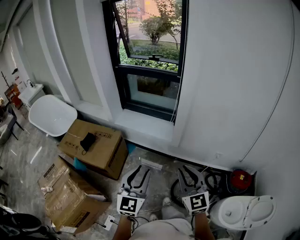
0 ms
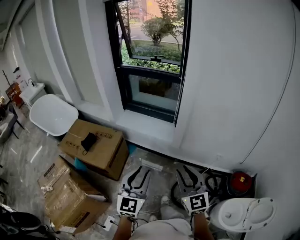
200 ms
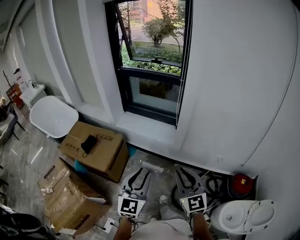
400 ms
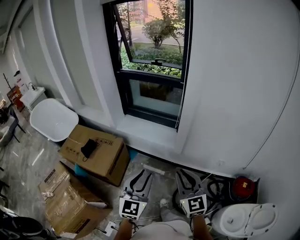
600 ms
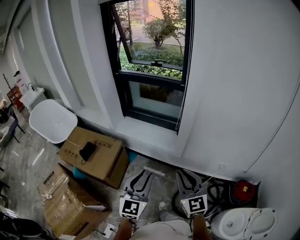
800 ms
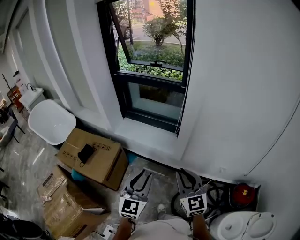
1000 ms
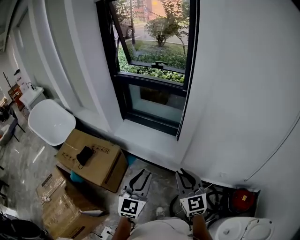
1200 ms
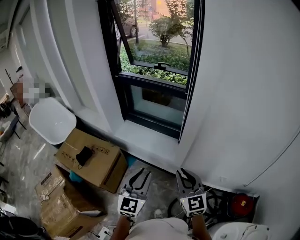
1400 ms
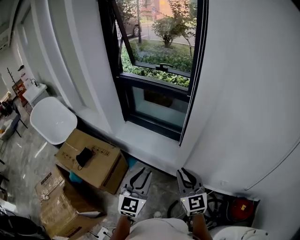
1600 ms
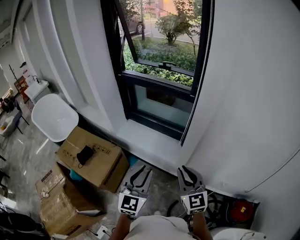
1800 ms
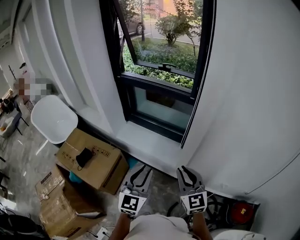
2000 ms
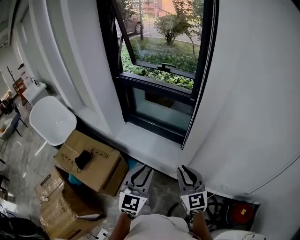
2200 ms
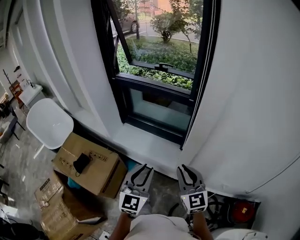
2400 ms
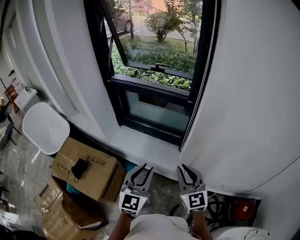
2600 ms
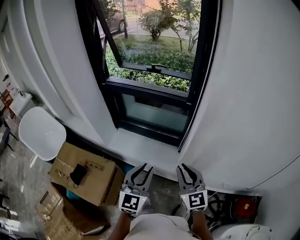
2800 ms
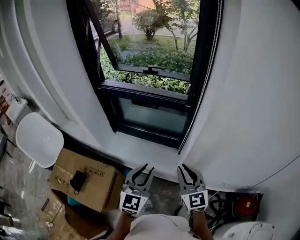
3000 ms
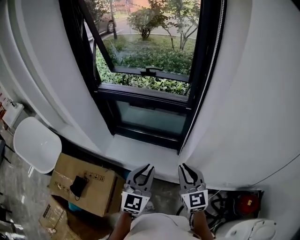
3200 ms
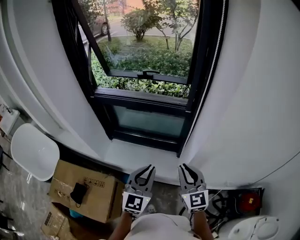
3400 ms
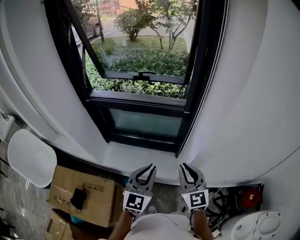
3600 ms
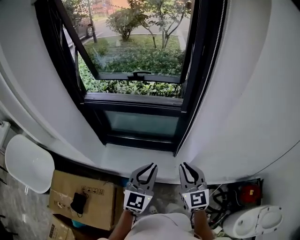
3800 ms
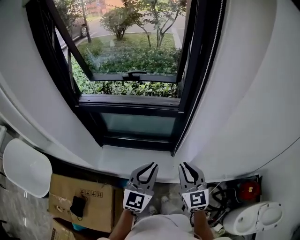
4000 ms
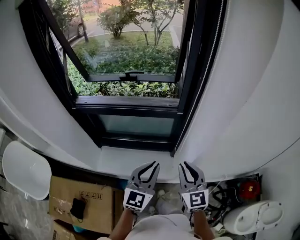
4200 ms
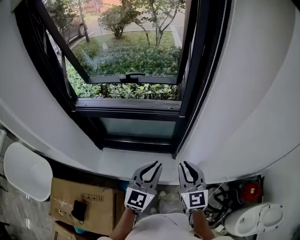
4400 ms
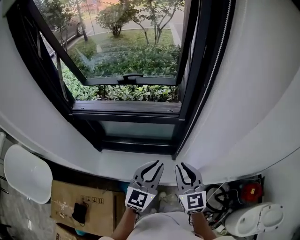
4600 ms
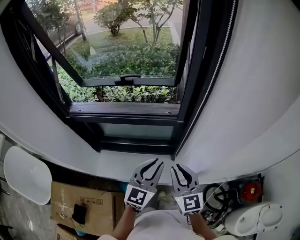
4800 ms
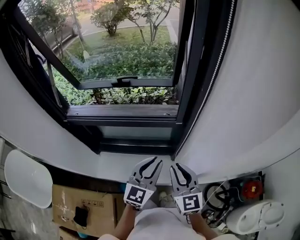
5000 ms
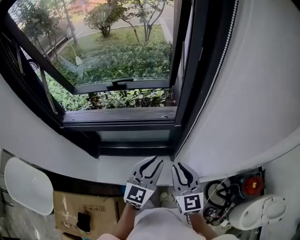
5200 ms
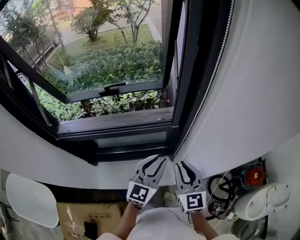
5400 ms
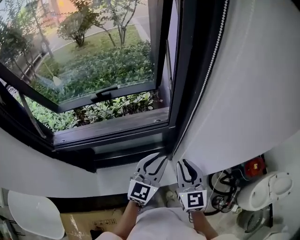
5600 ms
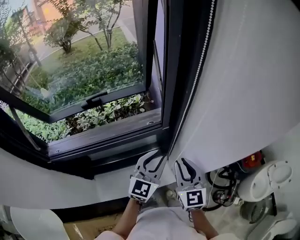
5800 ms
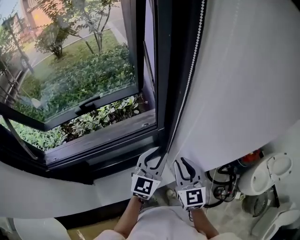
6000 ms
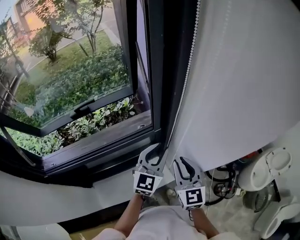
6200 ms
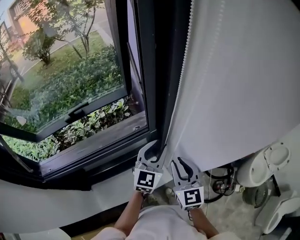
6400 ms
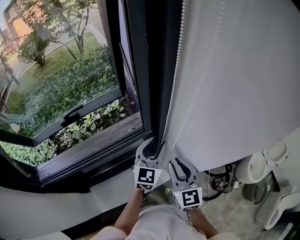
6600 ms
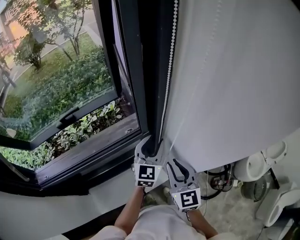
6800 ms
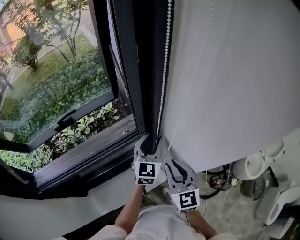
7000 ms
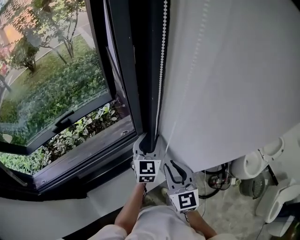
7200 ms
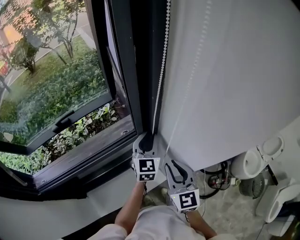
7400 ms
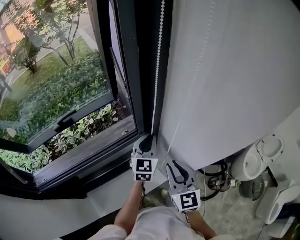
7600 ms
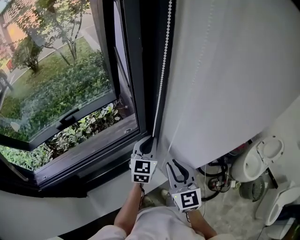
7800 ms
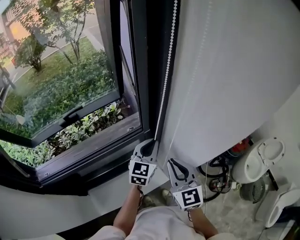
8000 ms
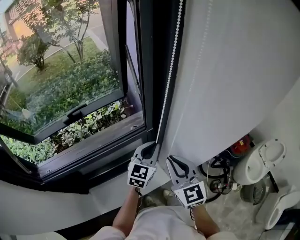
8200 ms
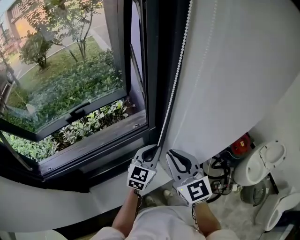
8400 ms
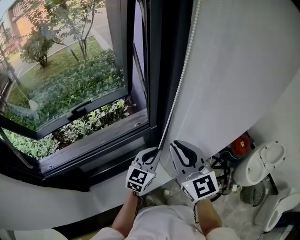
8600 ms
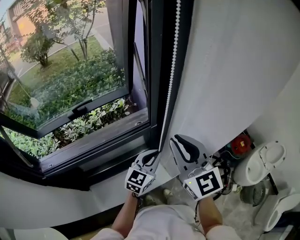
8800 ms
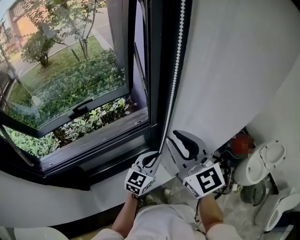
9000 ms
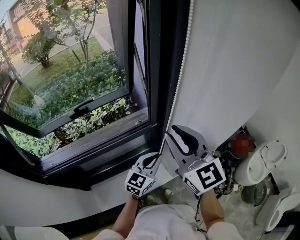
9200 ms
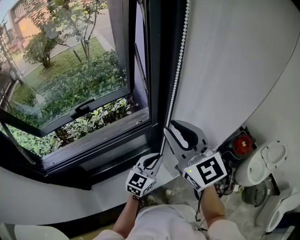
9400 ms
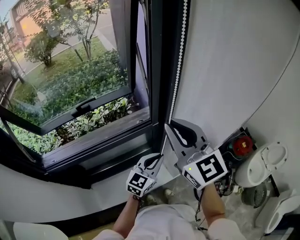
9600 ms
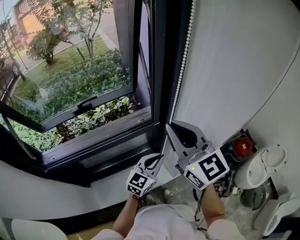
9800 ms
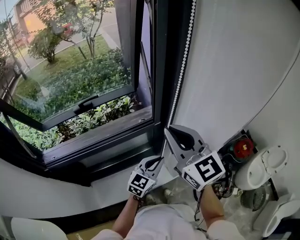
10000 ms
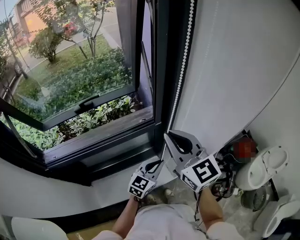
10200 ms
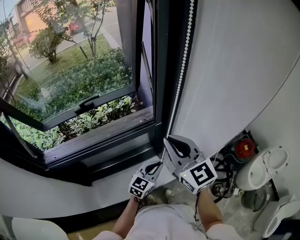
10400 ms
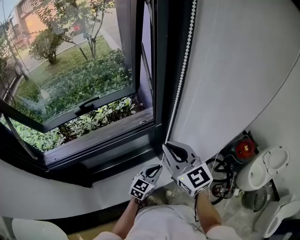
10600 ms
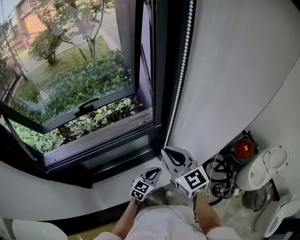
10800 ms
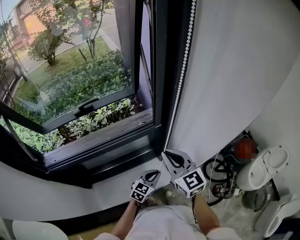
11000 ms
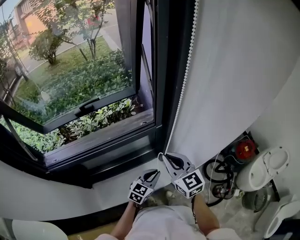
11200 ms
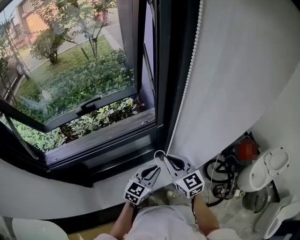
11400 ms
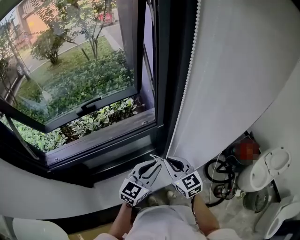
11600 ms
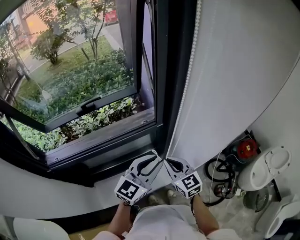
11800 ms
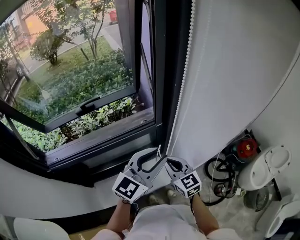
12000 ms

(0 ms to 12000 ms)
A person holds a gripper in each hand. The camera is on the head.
0 ms - 1600 ms: Both grippers travel together forward, some 25 cm.
1600 ms - 3000 ms: The grippers both shift forward by approximately 20 cm.
3000 ms - 4400 ms: Both grippers move forward, approximately 15 cm.
4400 ms - 6000 ms: The left gripper moves approximately 20 cm, and turns by approximately 30 degrees. Meanwhile the right gripper changes place by about 10 cm, and changes its angle by about 30 degrees.
6000 ms - 7600 ms: The left gripper travels forward by some 10 cm.
7600 ms - 9000 ms: The right gripper shifts approximately 15 cm upward, and swivels roughly 20 degrees. Meanwhile the left gripper is displaced backward by some 15 cm.
9000 ms - 10400 ms: The left gripper moves downward, about 10 cm, while the right gripper shifts by about 5 cm, and closes its fingers.
10400 ms - 12000 ms: The left gripper moves upward, about 20 cm, and opens its fingers; the right gripper moves downward, approximately 15 cm.

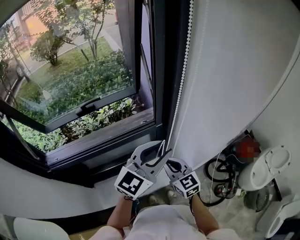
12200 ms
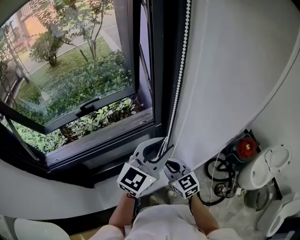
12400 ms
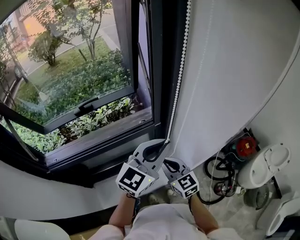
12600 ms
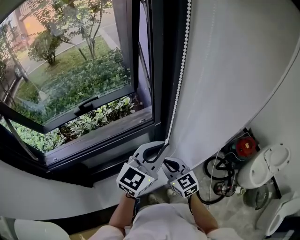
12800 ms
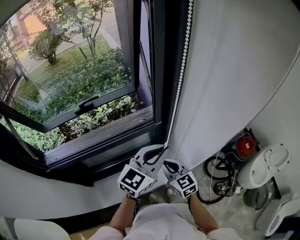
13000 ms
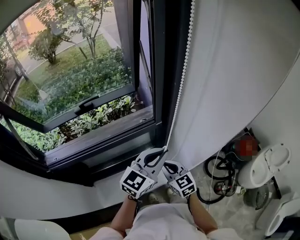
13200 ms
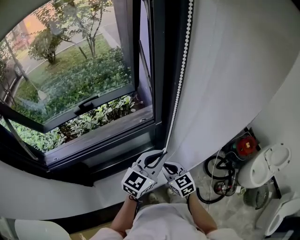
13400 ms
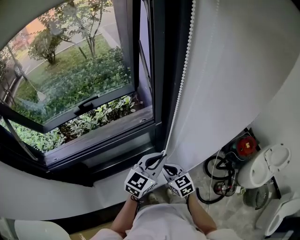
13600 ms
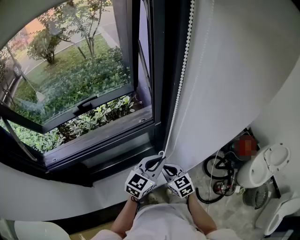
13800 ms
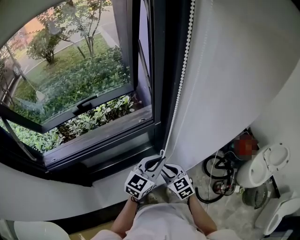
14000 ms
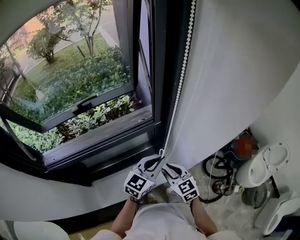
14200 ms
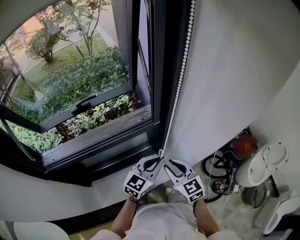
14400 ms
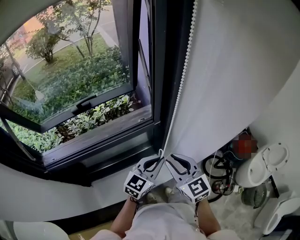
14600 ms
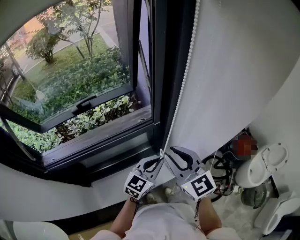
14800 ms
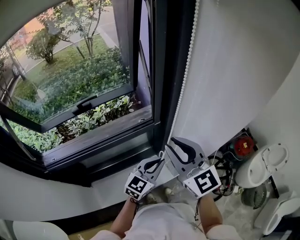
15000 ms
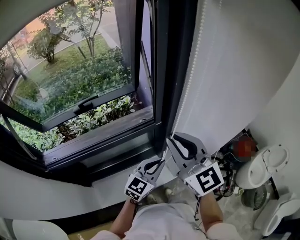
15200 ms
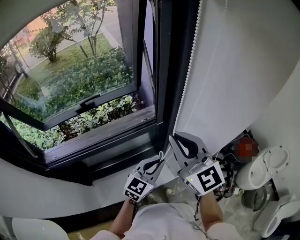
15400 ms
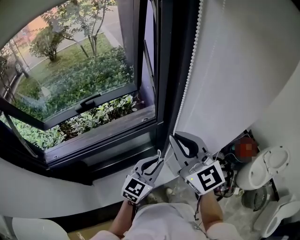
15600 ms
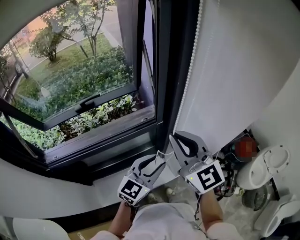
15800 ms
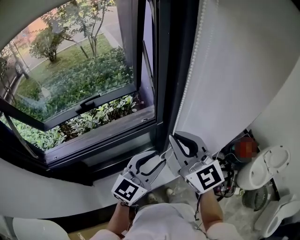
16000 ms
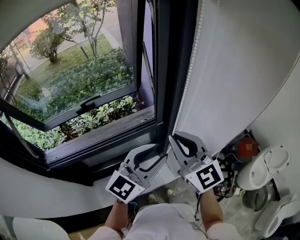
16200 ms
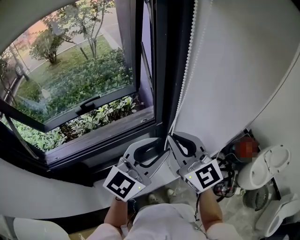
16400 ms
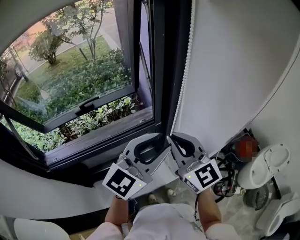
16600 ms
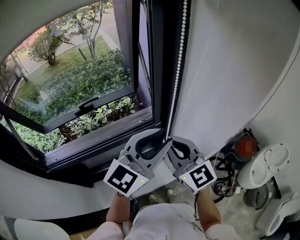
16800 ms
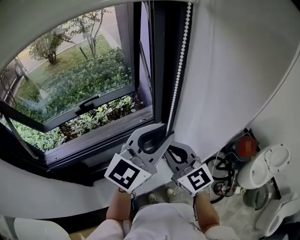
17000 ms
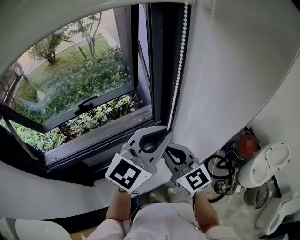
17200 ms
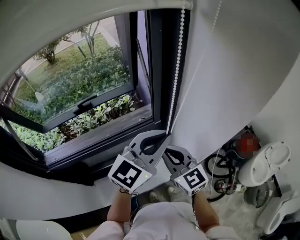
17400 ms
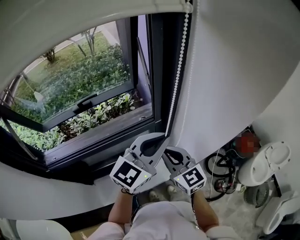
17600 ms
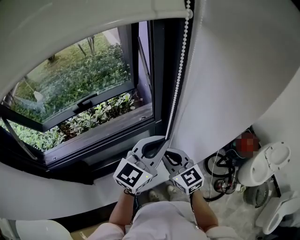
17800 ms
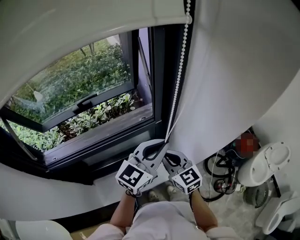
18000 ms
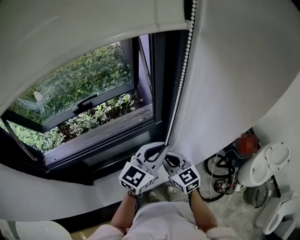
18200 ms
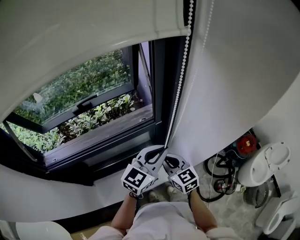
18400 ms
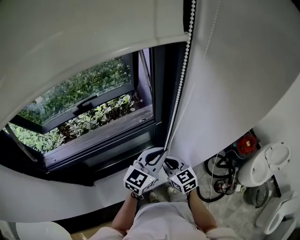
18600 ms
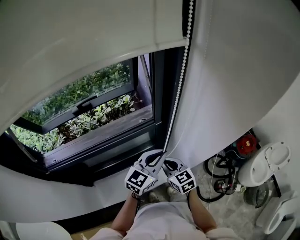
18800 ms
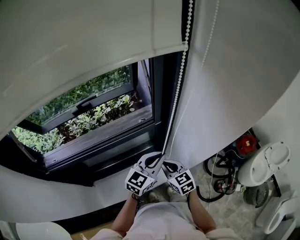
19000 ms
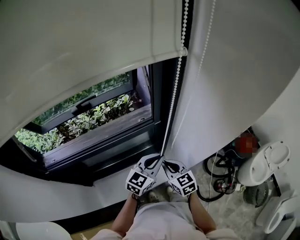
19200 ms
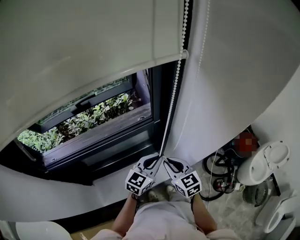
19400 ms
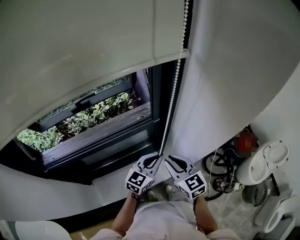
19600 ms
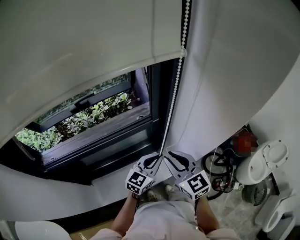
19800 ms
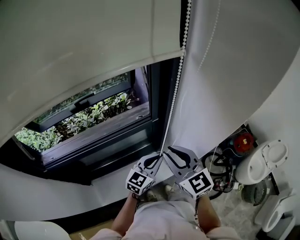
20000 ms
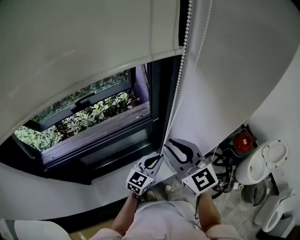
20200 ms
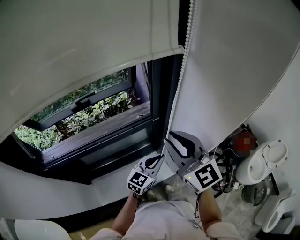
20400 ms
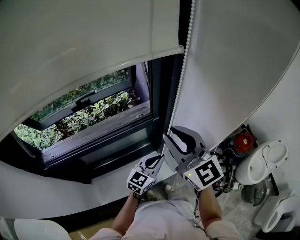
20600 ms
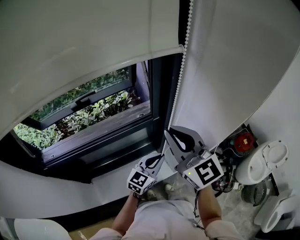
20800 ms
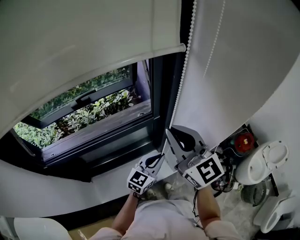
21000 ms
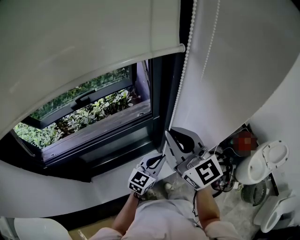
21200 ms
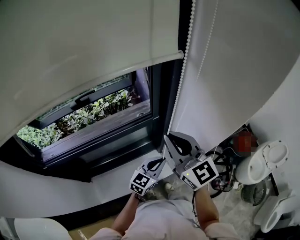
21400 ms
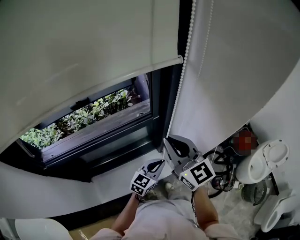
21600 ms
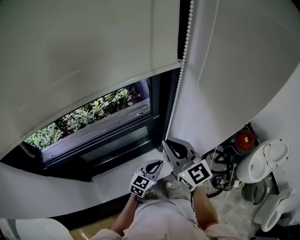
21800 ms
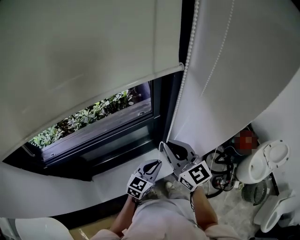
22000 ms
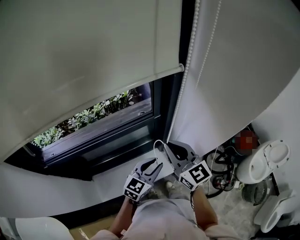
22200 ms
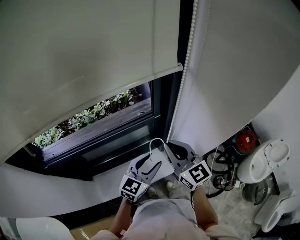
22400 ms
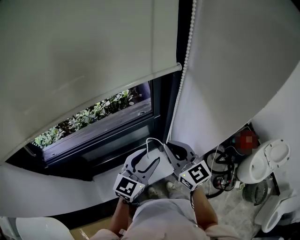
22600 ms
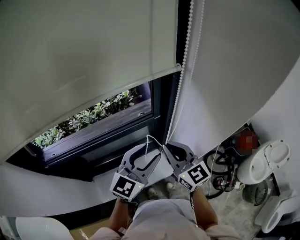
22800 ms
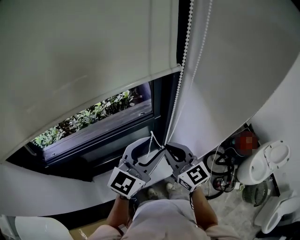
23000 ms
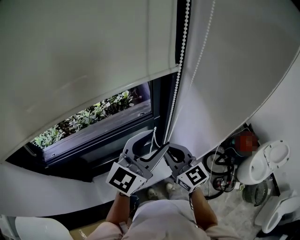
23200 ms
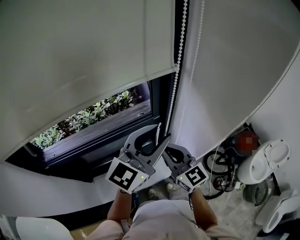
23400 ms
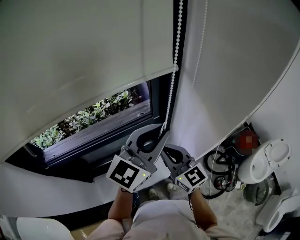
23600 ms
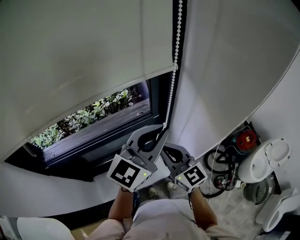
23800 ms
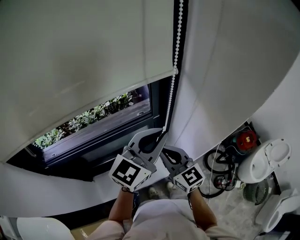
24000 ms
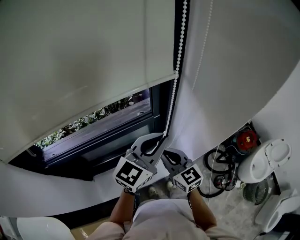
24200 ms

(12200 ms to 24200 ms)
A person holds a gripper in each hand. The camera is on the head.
12200 ms - 13800 ms: Both grippers travel together downward, roughly 10 cm. The left gripper closes.
13800 ms - 15200 ms: The right gripper goes about 30 cm upward, and angles its fingers upward, by approximately 30 degrees.
15200 ms - 16600 ms: The left gripper travels upward by some 20 cm, and opens up.
16600 ms - 18200 ms: The left gripper is displaced downward by roughly 10 cm, and closes its fingers; the right gripper moves downward, roughly 20 cm, and rotates some 20 degrees.
18200 ms - 19800 ms: The left gripper travels downward by about 15 cm. The right gripper moves upward, about 5 cm.
19800 ms - 21200 ms: The right gripper shifts approximately 15 cm upward.
21200 ms - 22600 ms: The right gripper goes roughly 10 cm downward, while the left gripper is displaced upward and to the left by roughly 10 cm, and opens.
22600 ms - 24200 ms: The right gripper goes approximately 5 cm downward; the left gripper moves upward, some 10 cm, and closes up.
